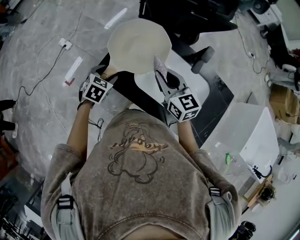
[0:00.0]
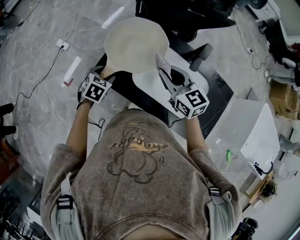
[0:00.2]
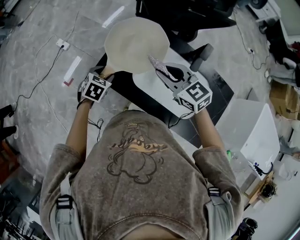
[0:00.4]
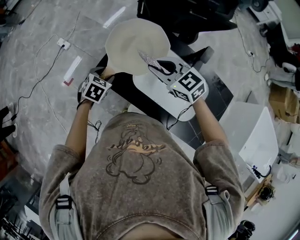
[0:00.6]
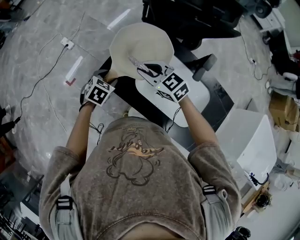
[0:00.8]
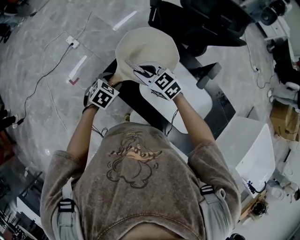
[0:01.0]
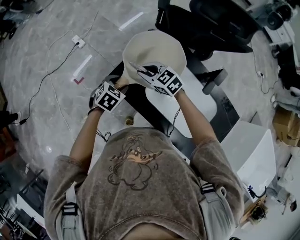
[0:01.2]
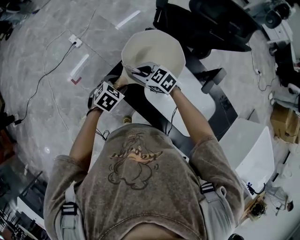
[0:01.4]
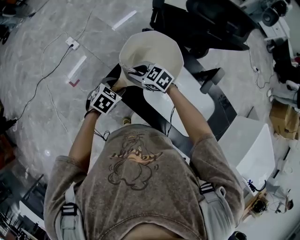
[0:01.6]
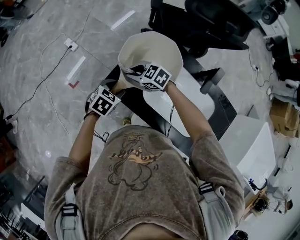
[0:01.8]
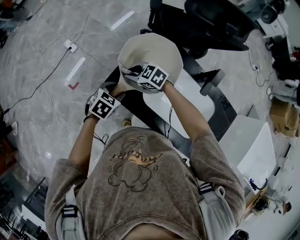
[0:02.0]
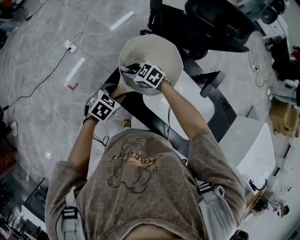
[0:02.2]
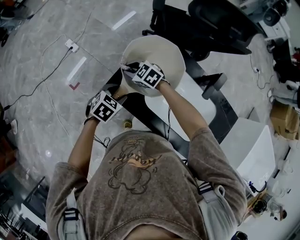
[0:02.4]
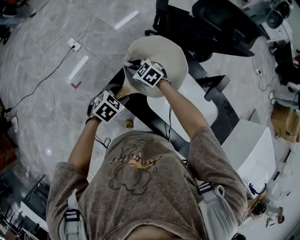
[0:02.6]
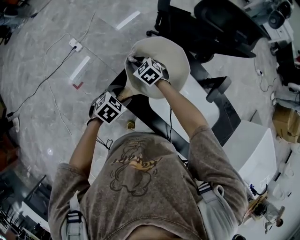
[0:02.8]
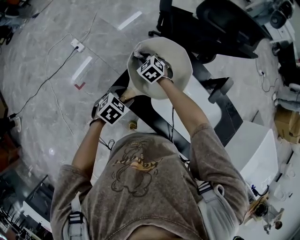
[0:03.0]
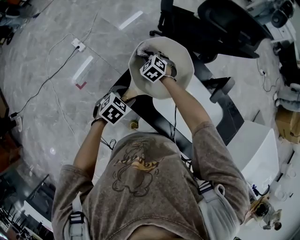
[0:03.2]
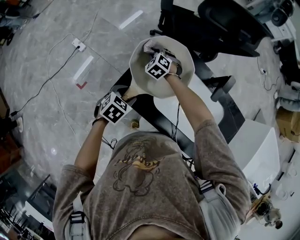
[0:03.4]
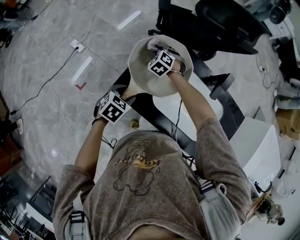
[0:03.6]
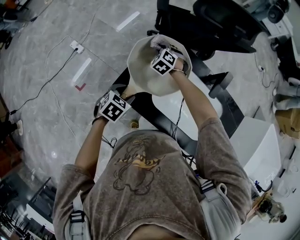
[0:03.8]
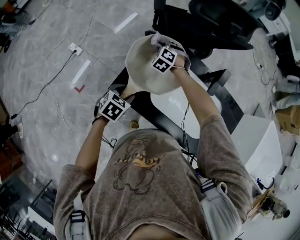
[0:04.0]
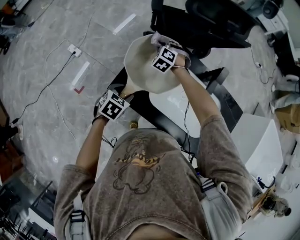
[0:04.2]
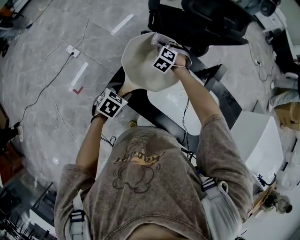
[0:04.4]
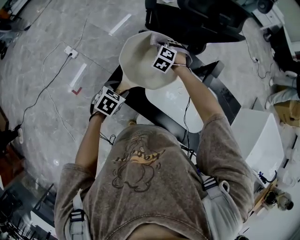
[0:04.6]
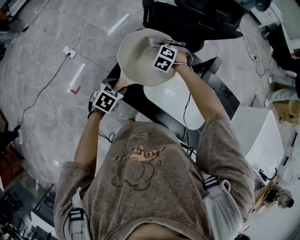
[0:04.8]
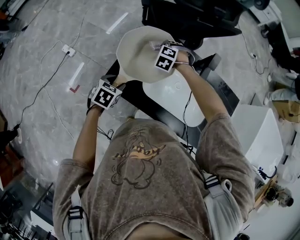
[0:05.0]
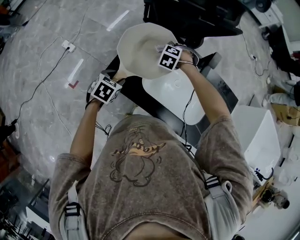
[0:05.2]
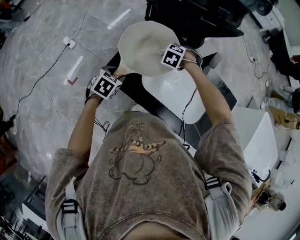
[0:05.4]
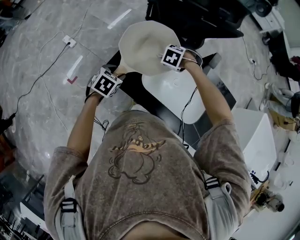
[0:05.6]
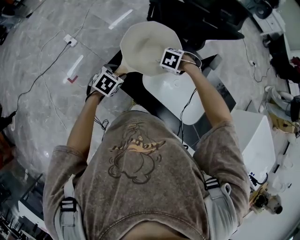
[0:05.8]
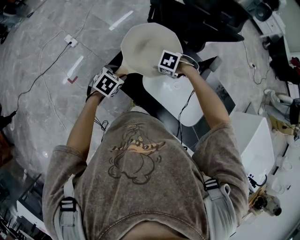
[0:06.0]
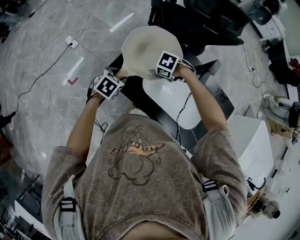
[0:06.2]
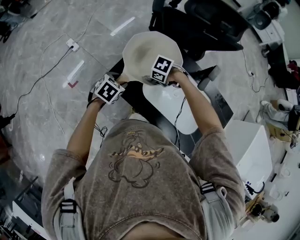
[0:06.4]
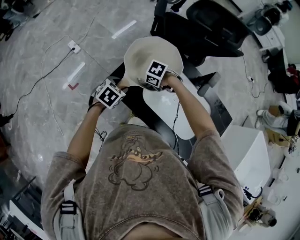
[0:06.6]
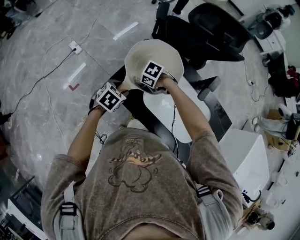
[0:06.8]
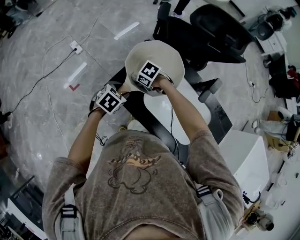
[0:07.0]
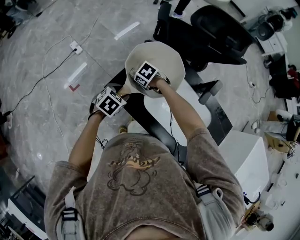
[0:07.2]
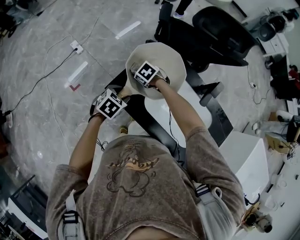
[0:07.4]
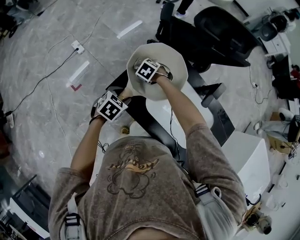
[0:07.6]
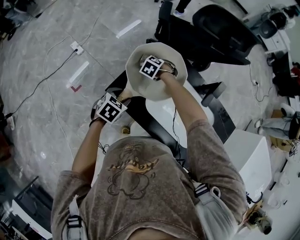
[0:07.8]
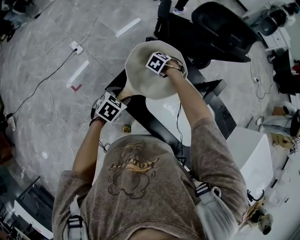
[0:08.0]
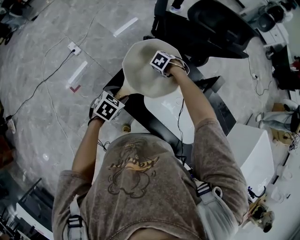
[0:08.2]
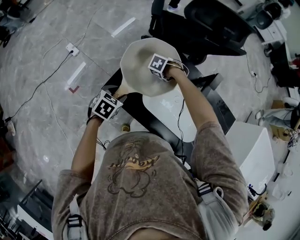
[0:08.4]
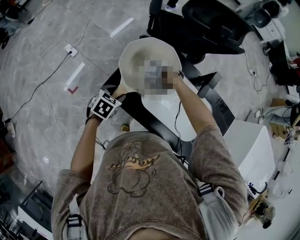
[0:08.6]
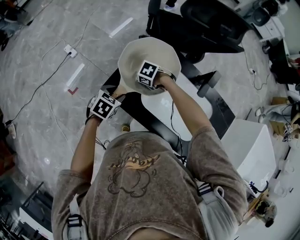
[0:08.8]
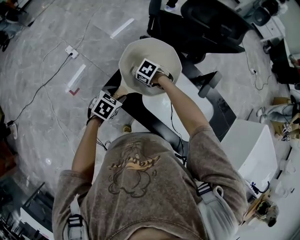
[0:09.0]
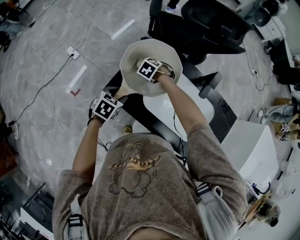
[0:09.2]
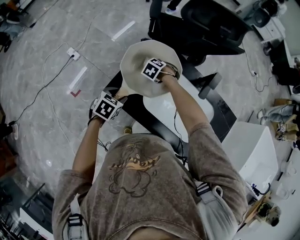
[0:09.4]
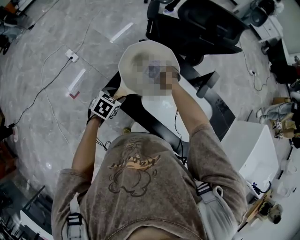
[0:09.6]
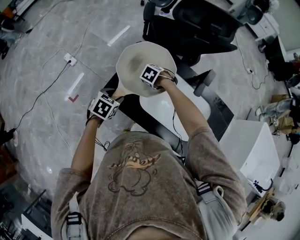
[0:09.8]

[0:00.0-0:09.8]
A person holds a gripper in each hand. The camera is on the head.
0:00.0 to 0:01.4: The right gripper goes about 20 cm to the left, downward and forward, and changes its angle by roughly 50 degrees.
0:01.4 to 0:02.8: The right gripper moves roughly 15 cm, and swivels about 20 degrees.
0:02.8 to 0:04.2: The right gripper travels to the right and forward by approximately 15 cm, and rotates some 30 degrees.
0:04.2 to 0:05.6: The right gripper ends up roughly 20 cm from where it was, and tips its fingers downward by some 30 degrees.
0:05.6 to 0:07.0: The right gripper shifts by approximately 20 cm, and swivels some 30 degrees.
0:07.0 to 0:08.4: The right gripper changes place by about 15 cm, and changes its angle by about 20 degrees.

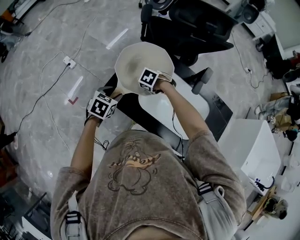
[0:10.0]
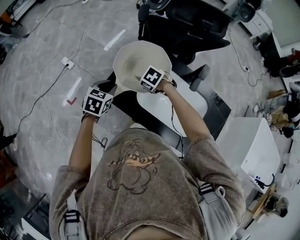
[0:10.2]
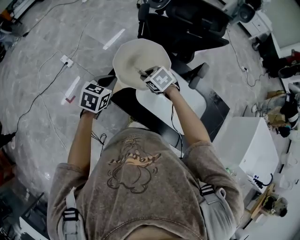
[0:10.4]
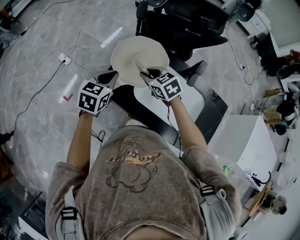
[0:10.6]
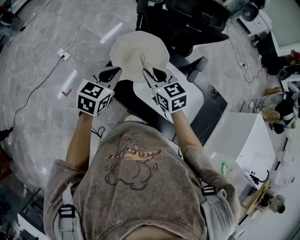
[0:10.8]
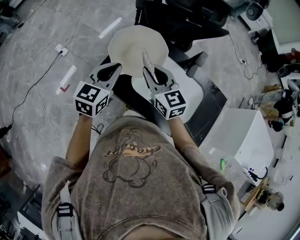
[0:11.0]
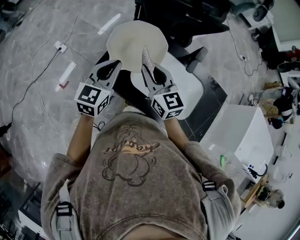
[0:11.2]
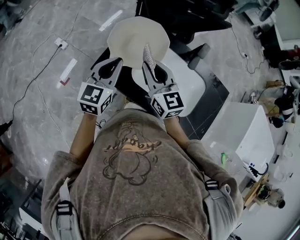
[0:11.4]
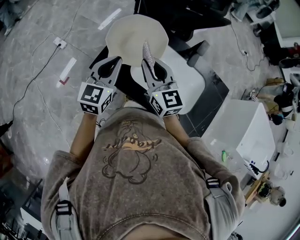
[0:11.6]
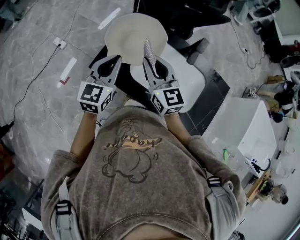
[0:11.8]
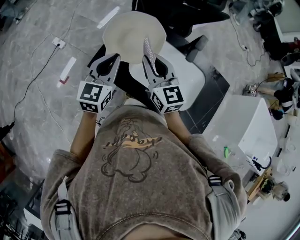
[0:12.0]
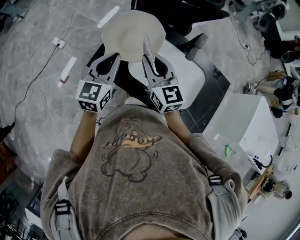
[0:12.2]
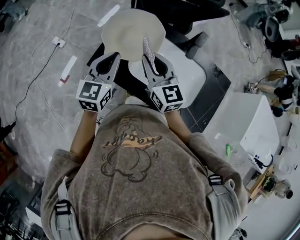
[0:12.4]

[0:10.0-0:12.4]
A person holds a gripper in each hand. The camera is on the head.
0:10.0 to 0:11.2: The left gripper heads upward, covering some 15 cm, angles its fingers upward, by some 40 degrees, and closes; the right gripper moves upward, about 25 cm, and tilts its fingers some 70 degrees upward.
0:11.2 to 0:12.4: The grippers move only a little.

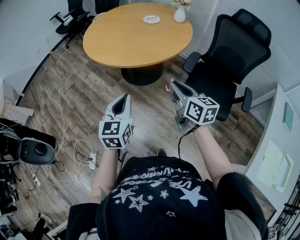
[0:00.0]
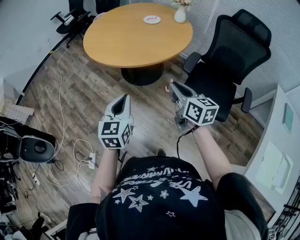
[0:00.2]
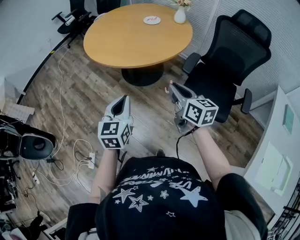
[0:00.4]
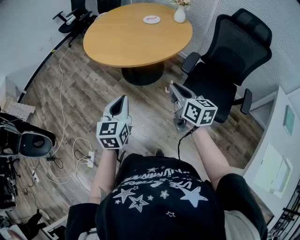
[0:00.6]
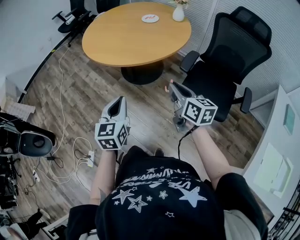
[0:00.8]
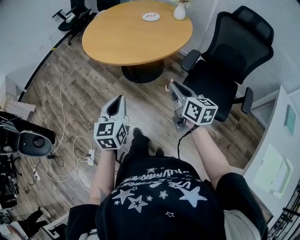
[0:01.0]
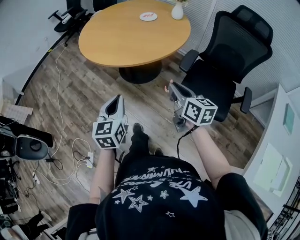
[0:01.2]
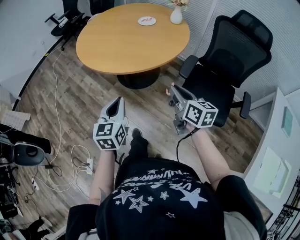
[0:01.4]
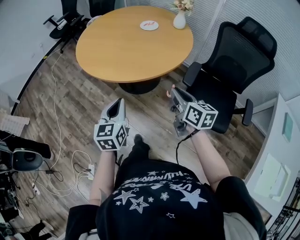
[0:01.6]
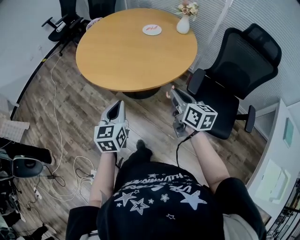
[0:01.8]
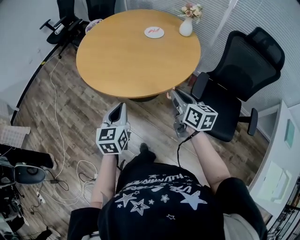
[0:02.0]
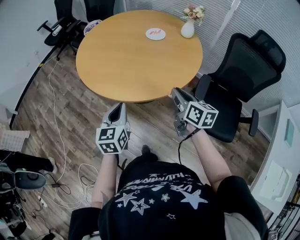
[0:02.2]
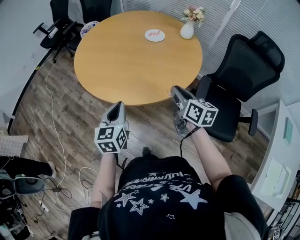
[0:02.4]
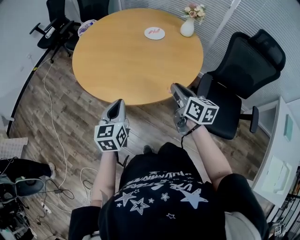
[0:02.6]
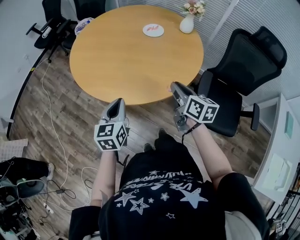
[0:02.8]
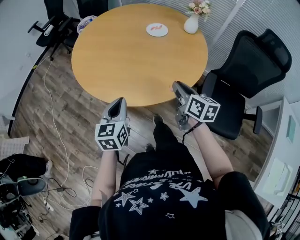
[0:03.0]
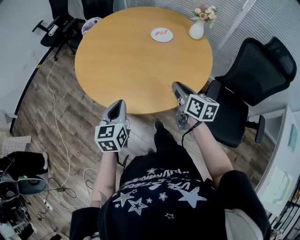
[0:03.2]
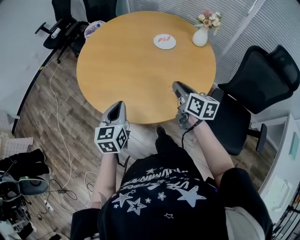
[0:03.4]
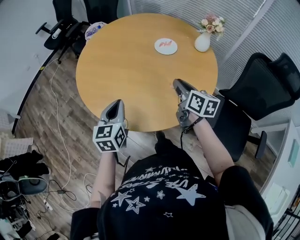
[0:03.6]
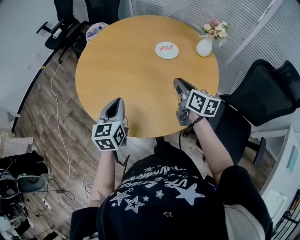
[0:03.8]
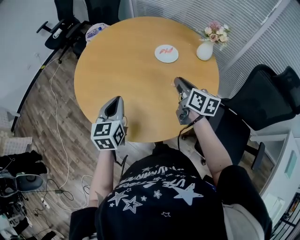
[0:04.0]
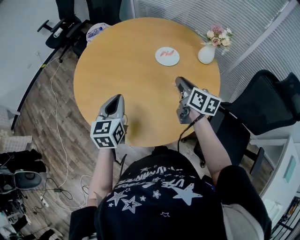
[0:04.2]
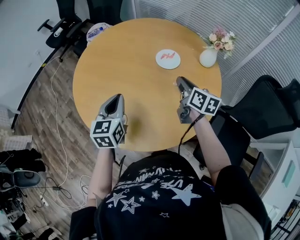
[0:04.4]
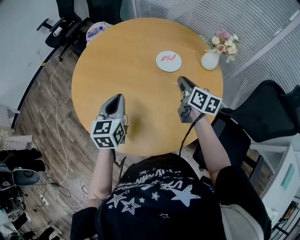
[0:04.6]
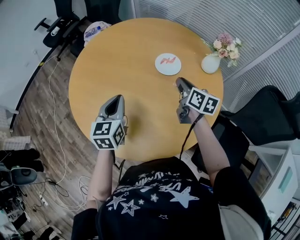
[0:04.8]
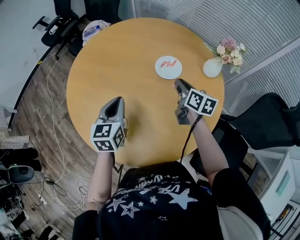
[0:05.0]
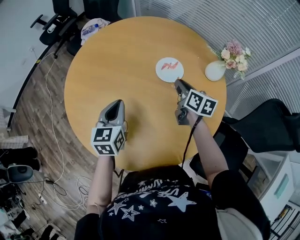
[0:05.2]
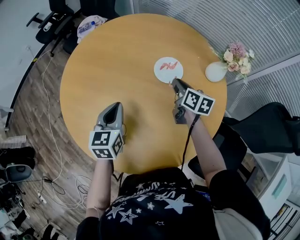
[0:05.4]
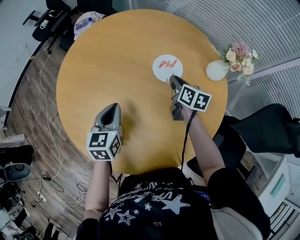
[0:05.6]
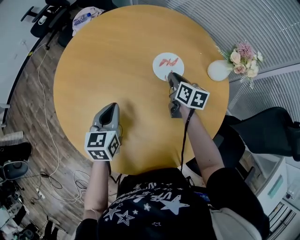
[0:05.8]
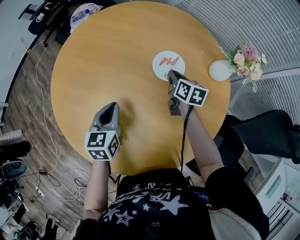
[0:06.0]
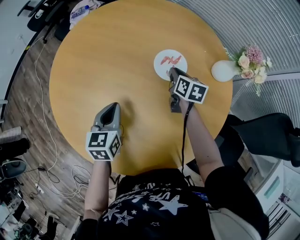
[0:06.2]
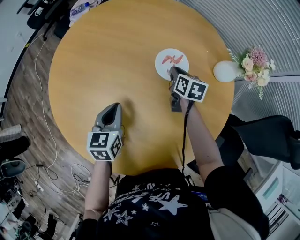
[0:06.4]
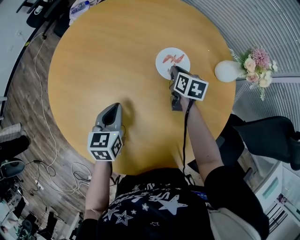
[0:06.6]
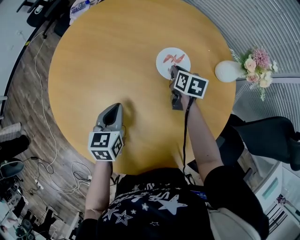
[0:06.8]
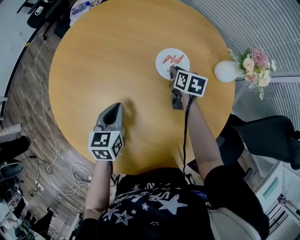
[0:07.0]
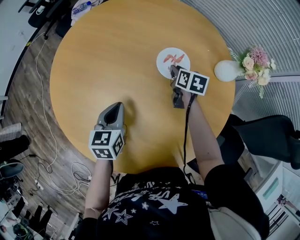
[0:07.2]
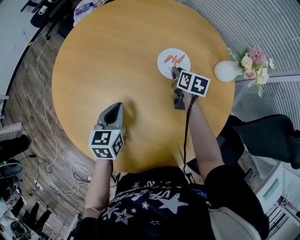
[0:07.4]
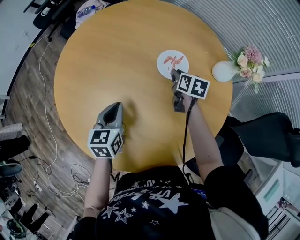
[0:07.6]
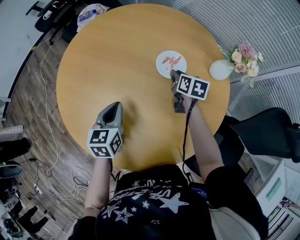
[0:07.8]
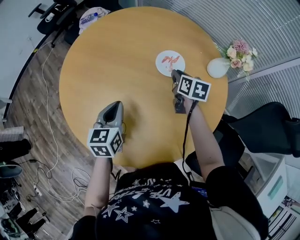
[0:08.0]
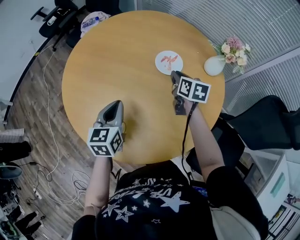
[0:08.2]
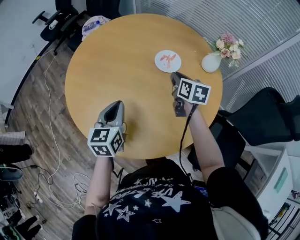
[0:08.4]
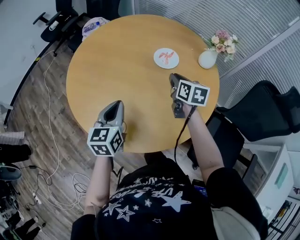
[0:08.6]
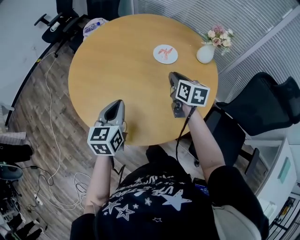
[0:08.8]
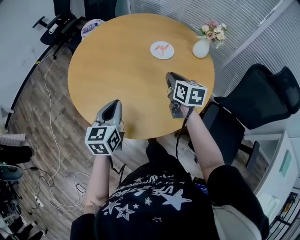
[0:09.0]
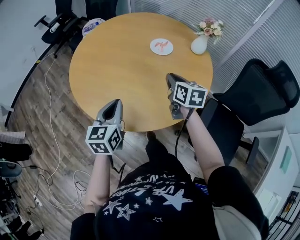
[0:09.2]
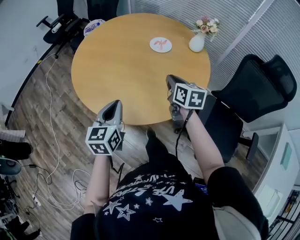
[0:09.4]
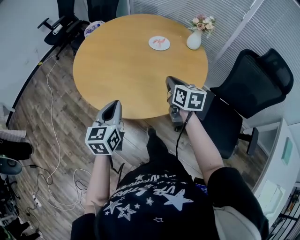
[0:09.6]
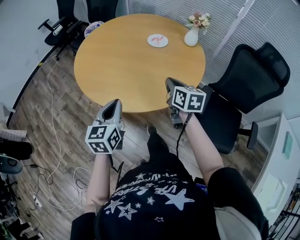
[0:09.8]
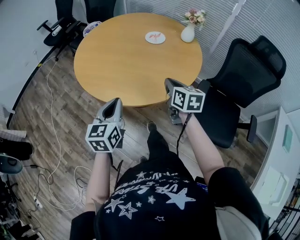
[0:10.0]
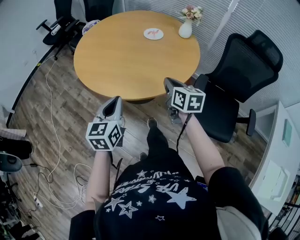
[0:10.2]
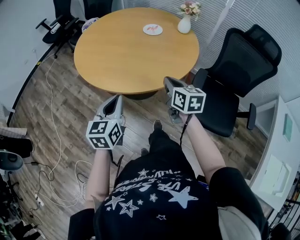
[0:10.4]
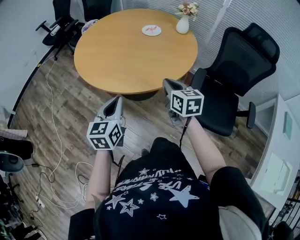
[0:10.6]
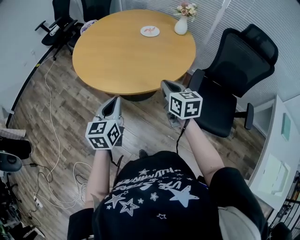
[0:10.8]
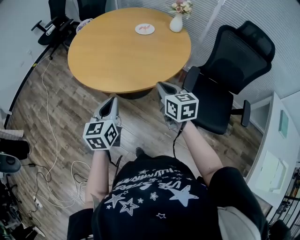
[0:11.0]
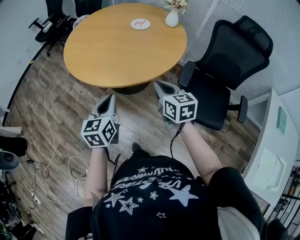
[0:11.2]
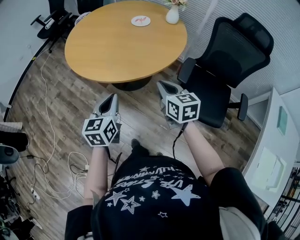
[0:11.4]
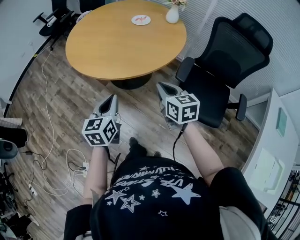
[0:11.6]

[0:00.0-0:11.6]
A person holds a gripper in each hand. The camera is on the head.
0:00.0 to 0:01.4: The left gripper is displaced forward by approximately 5 cm. Meanwhile the right gripper moves roughly 5 cm.
0:01.4 to 0:02.8: The right gripper is displaced forward by approximately 25 cm. Meanwhile the left gripper heads forward and to the left, covering some 30 cm.
0:02.8 to 0:04.4: The grippers both shift forward by roughly 30 cm.
0:04.4 to 0:05.8: The right gripper is displaced forward and downward by about 20 cm. Meanwhile the left gripper shifts some 15 cm forward and downward.
0:05.8 to 0:07.2: The right gripper moves downward, approximately 5 cm.
0:07.2 to 0:08.8: The grippers both shift backward and upward by some 25 cm.
0:08.8 to 0:10.2: The grippers both shift backward by some 30 cm.
0:10.2 to 0:11.6: The left gripper moves backward and to the right, approximately 15 cm, while the right gripper goes roughly 15 cm backward.
